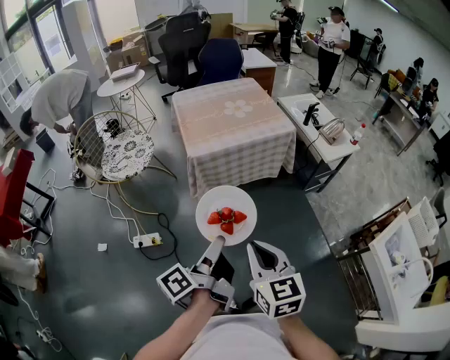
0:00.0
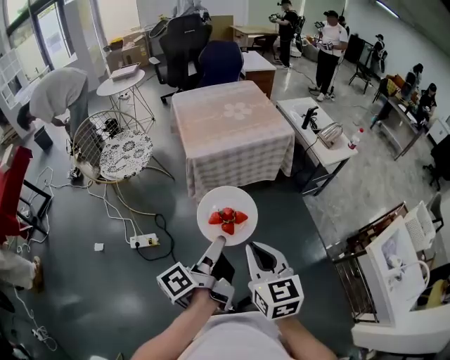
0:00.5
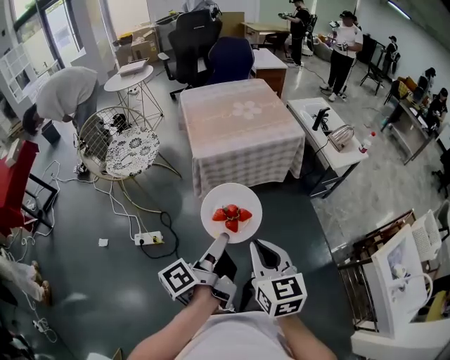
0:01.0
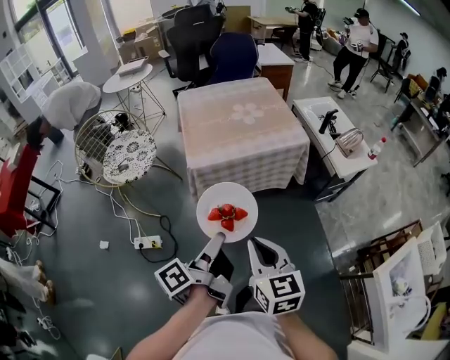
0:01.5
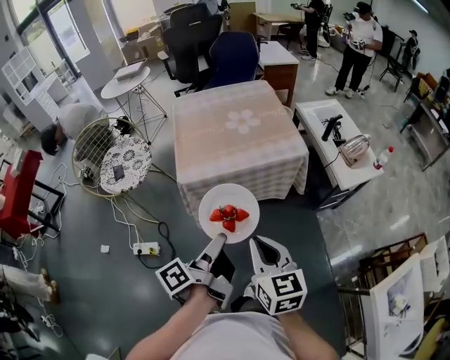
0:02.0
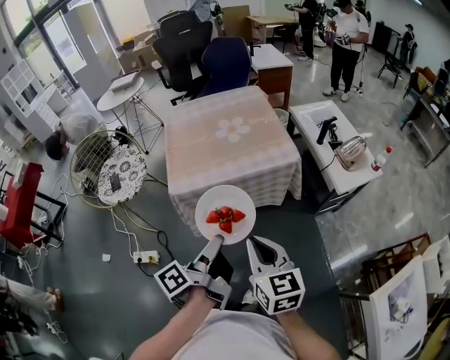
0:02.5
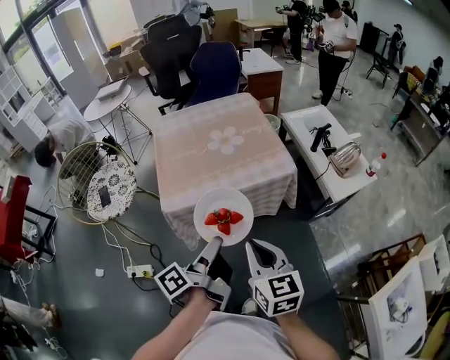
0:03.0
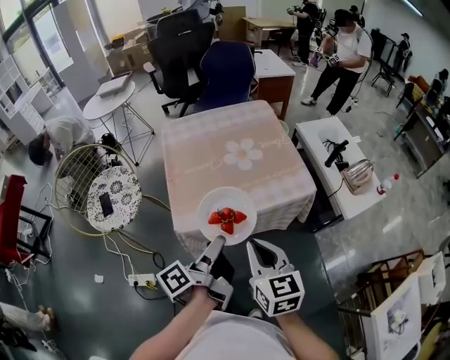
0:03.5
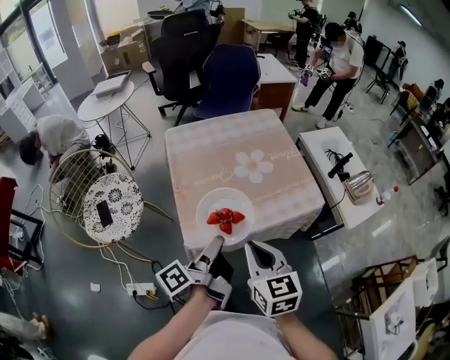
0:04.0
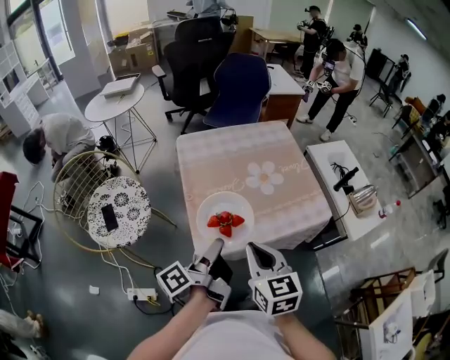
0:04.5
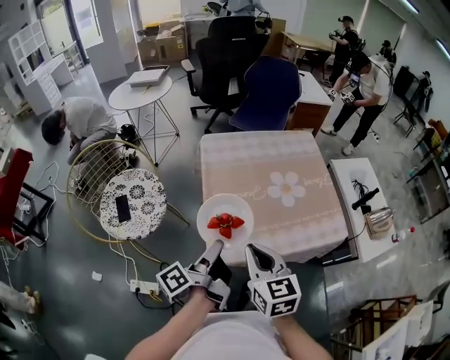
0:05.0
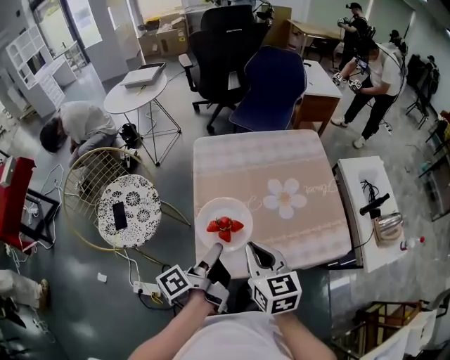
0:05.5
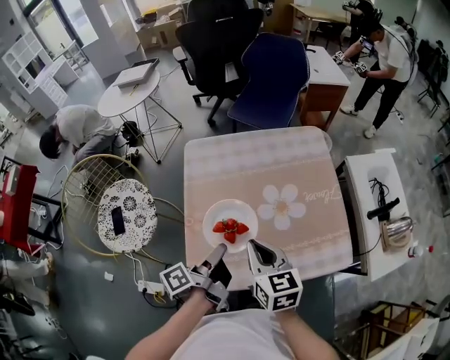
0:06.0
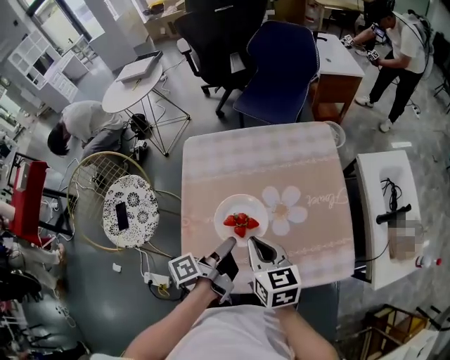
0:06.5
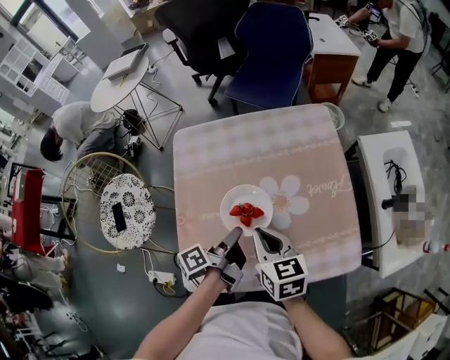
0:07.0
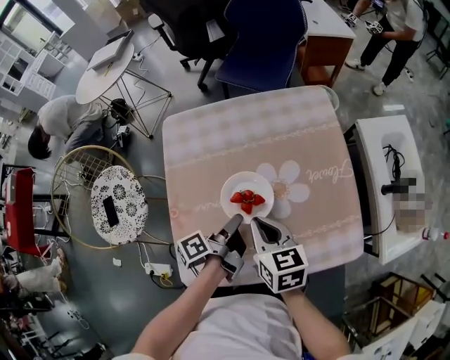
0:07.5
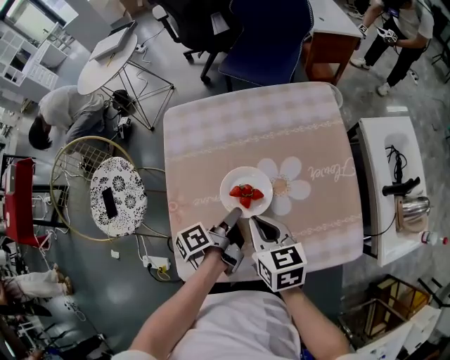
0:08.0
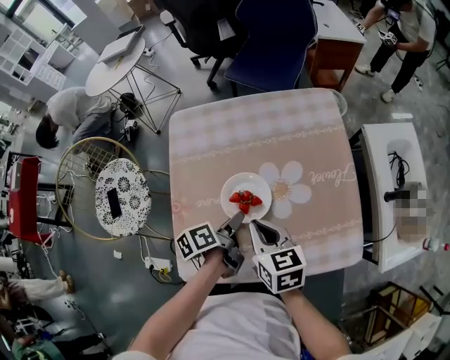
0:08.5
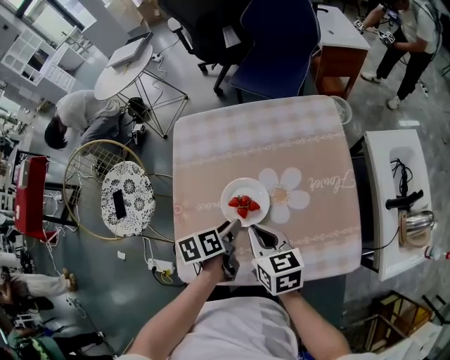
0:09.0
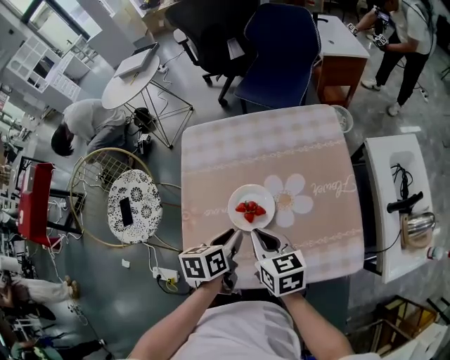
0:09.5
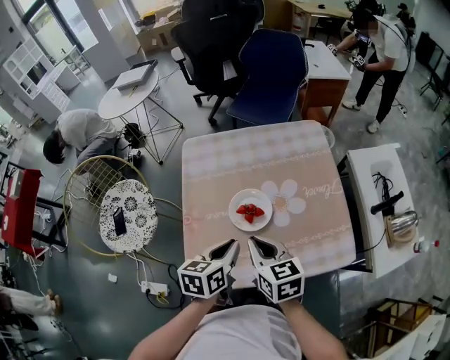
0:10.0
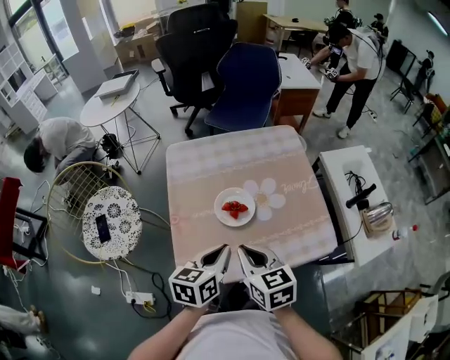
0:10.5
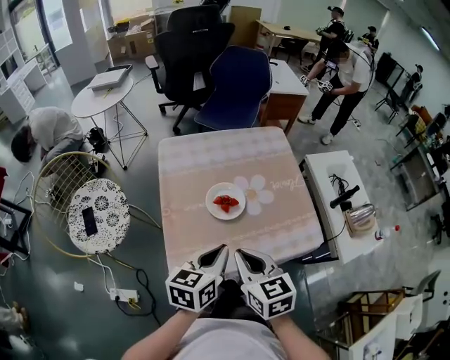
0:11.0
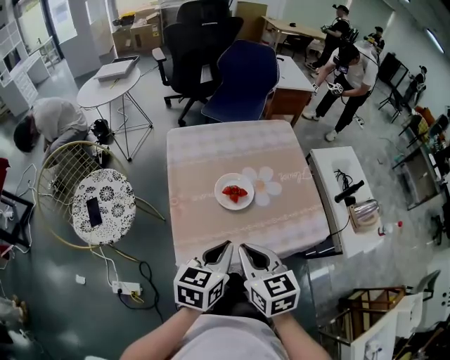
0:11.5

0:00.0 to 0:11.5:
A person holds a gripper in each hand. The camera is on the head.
0:00.0 to 0:02.0: The right gripper shifts by roughly 25 cm.
0:02.0 to 0:04.0: The right gripper changes place by some 25 cm.
0:04.0 to 0:06.0: The right gripper ends up roughly 25 cm from where it was.
0:06.0 to 0:07.5: The right gripper heads downward, covering approximately 10 cm.
0:09.5 to 0:11.5: The right gripper ends up about 20 cm from where it was.

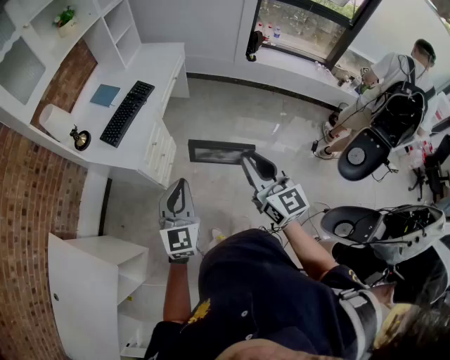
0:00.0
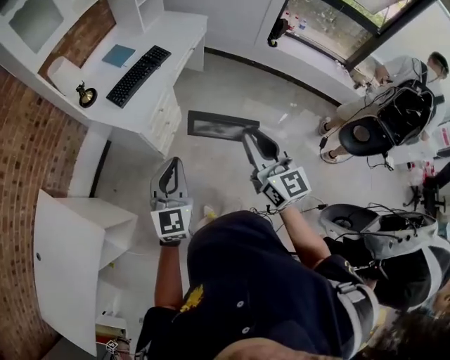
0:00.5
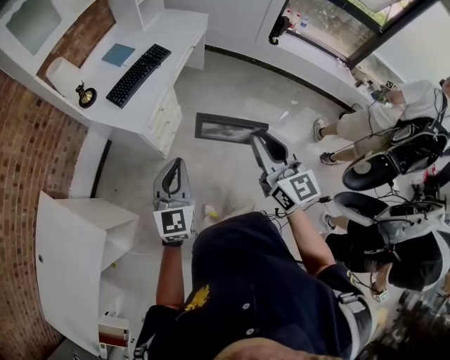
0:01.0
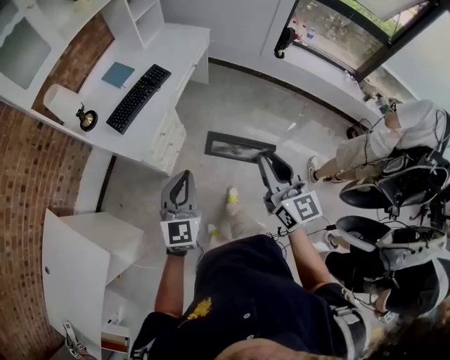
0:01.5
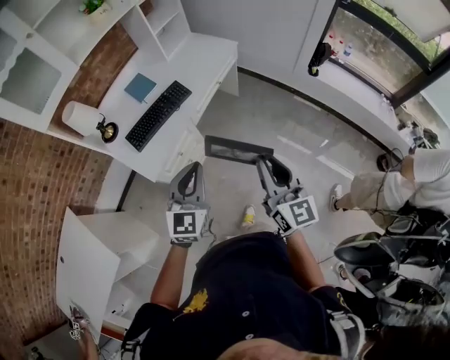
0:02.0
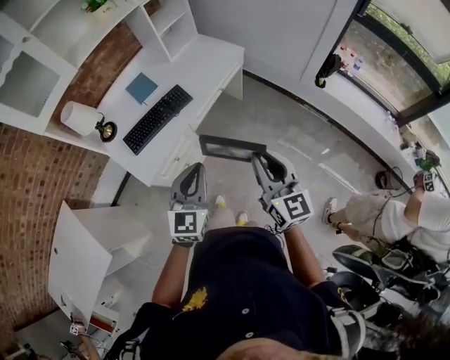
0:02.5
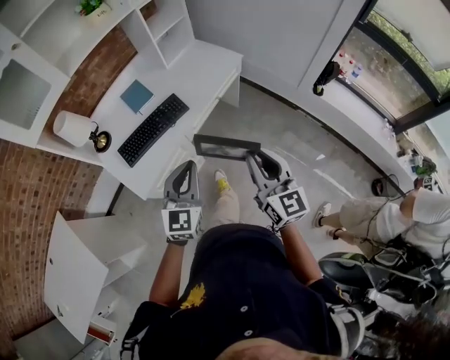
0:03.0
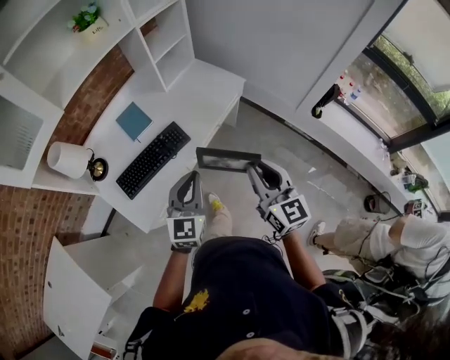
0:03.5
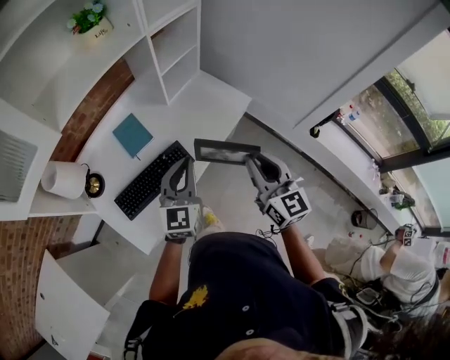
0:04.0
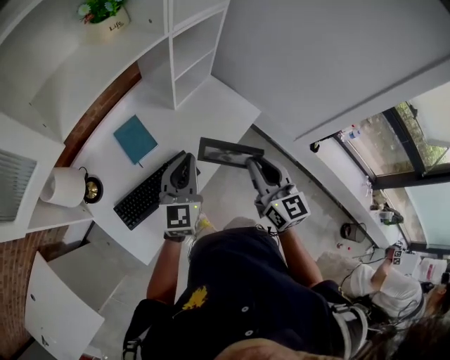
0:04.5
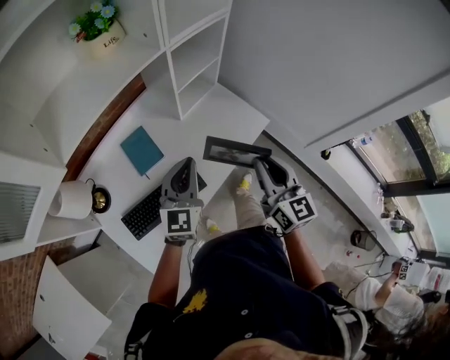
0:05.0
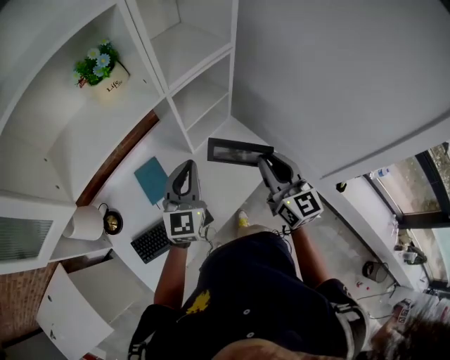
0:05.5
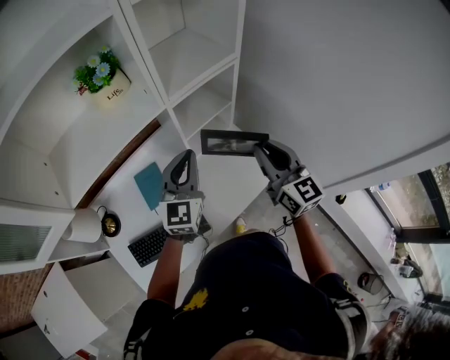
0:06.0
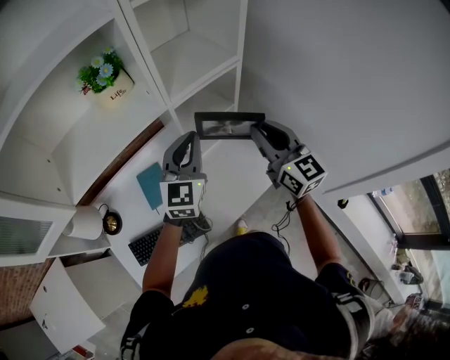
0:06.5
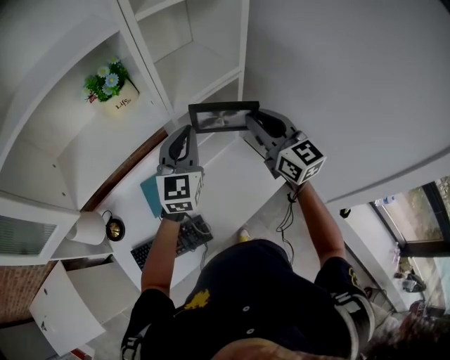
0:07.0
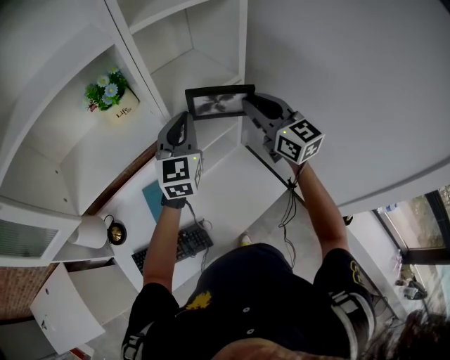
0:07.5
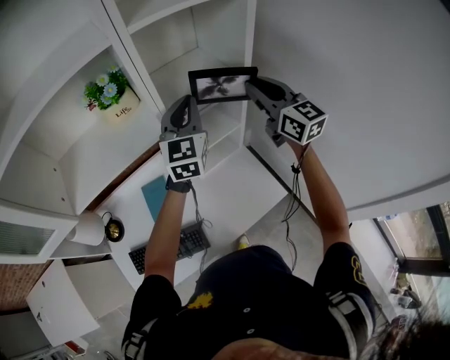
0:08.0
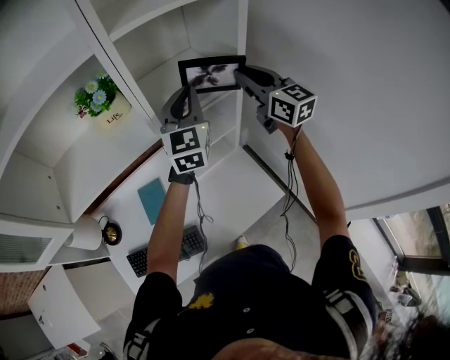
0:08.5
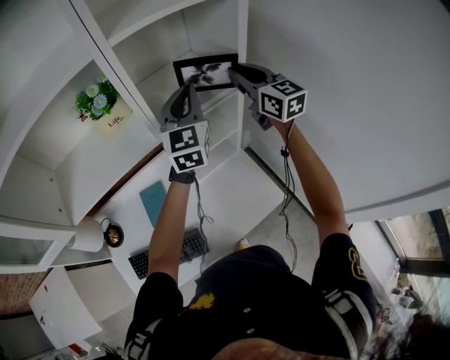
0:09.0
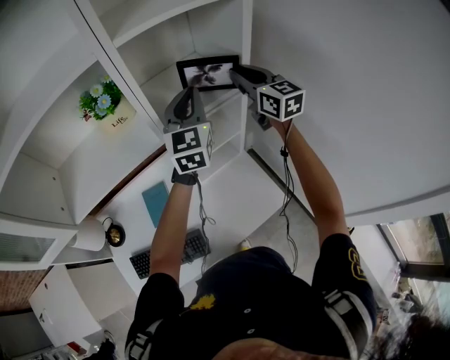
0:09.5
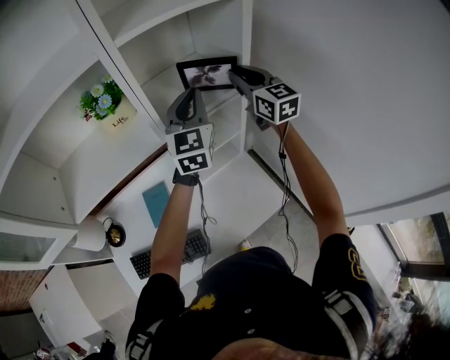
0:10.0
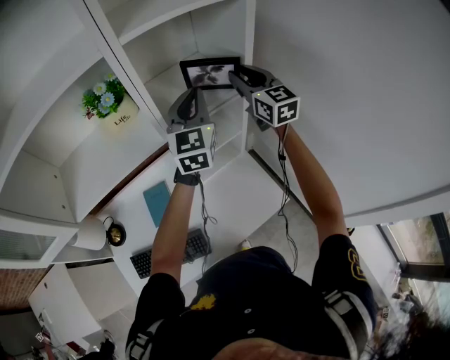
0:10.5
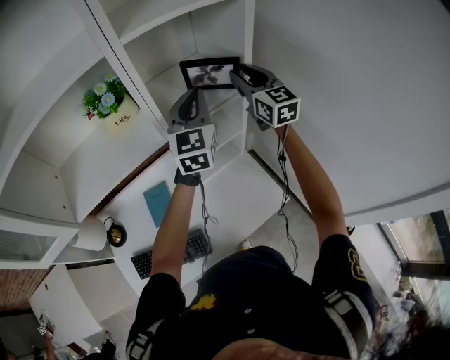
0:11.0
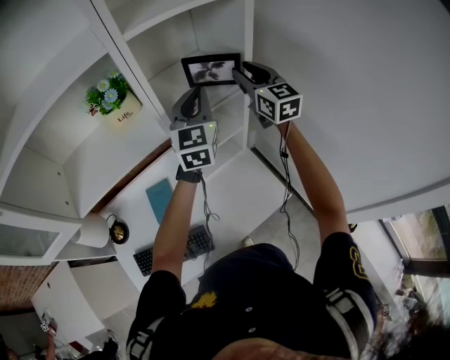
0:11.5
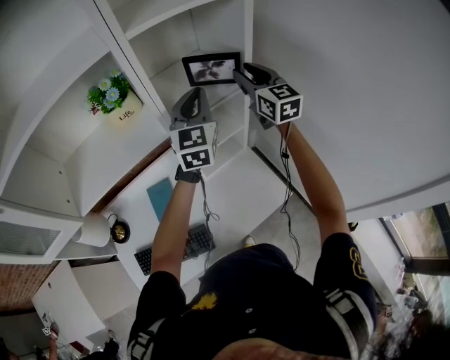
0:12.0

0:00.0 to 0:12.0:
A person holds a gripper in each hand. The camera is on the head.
0:00.0 to 0:02.0: The grippers both shift forward and to the right by some 25 cm.
0:02.0 to 0:04.0: Both grippers are carried forward, approximately 40 cm.
0:04.0 to 0:06.0: The two grippers go some 35 cm forward.
0:06.0 to 0:08.0: The grippers both shift forward and upward by roughly 20 cm.
0:08.0 to 0:10.0: The right gripper is displaced forward by about 10 cm.
0:10.0 to 0:12.0: There are only small adjustments of the grippers.

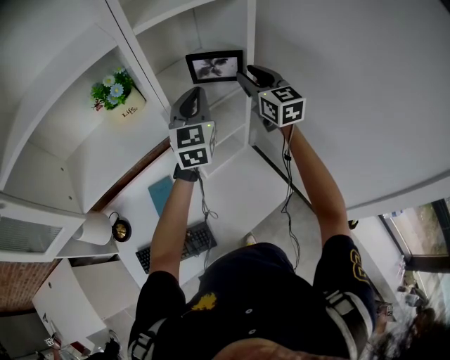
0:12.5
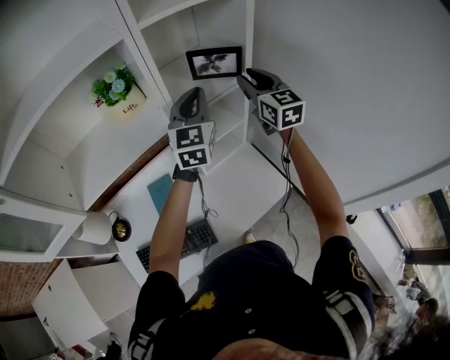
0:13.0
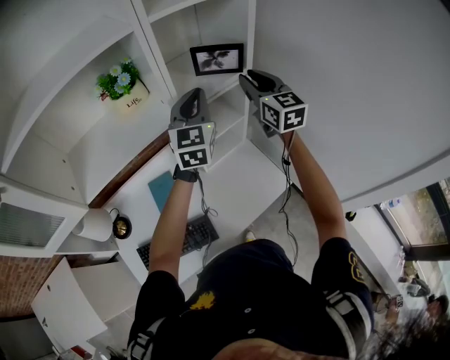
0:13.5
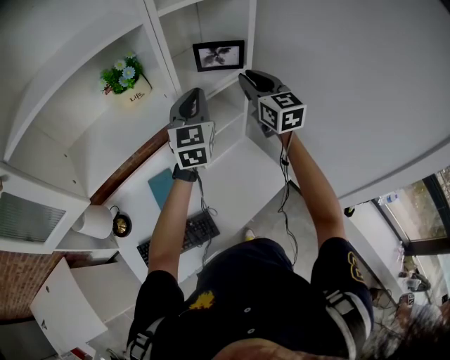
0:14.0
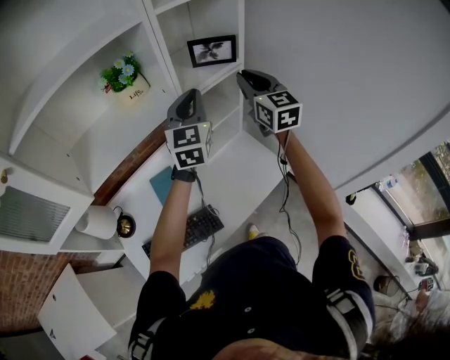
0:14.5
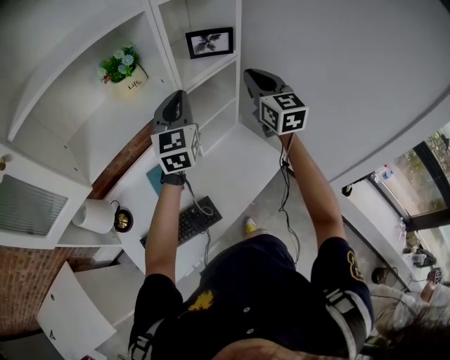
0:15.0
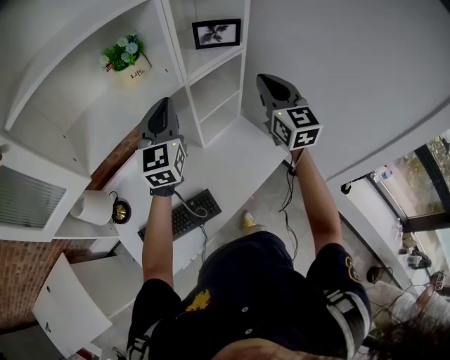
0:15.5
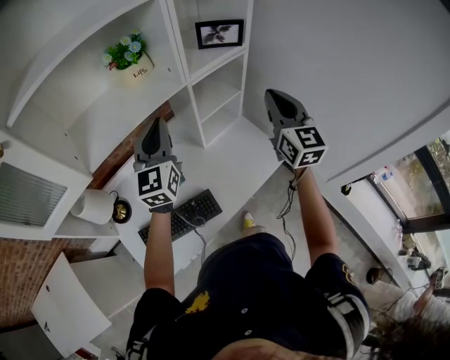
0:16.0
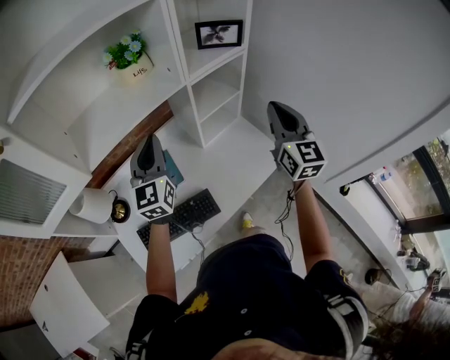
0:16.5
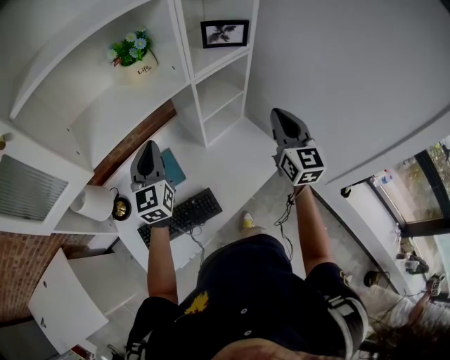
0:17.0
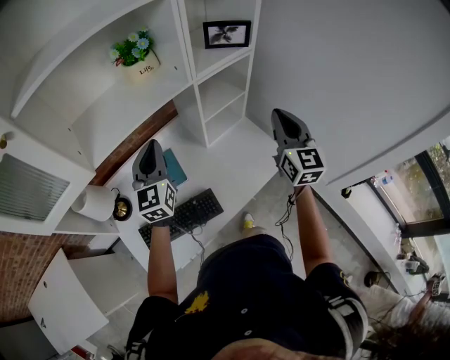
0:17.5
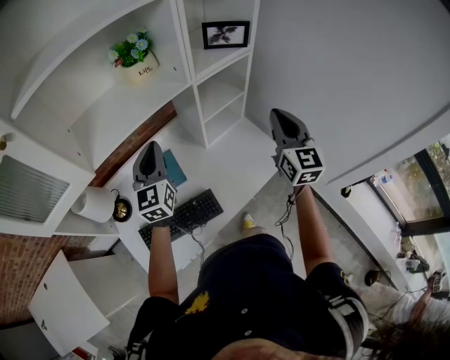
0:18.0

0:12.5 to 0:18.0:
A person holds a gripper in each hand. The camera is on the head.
0:12.5 to 0:14.5: Both grippers travel together backward, roughly 10 cm.
0:14.5 to 0:16.0: The right gripper travels backward by about 10 cm; the left gripper moves to the left and backward, some 15 cm.
0:16.0 to 0:18.0: The right gripper changes place by about 5 cm; the left gripper travels downward and to the left by approximately 10 cm.
